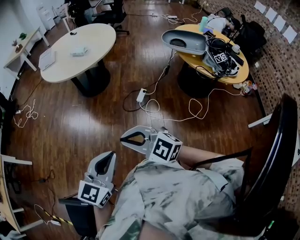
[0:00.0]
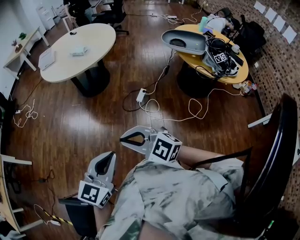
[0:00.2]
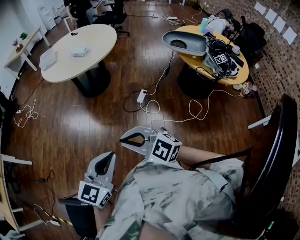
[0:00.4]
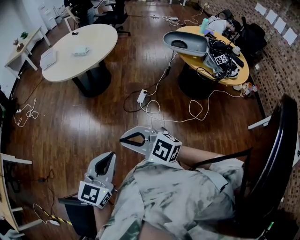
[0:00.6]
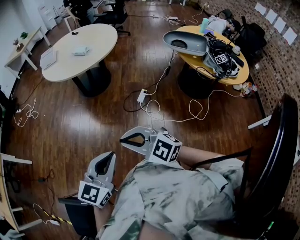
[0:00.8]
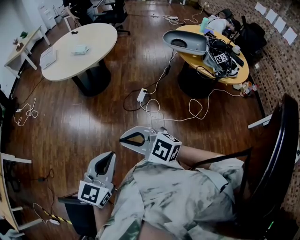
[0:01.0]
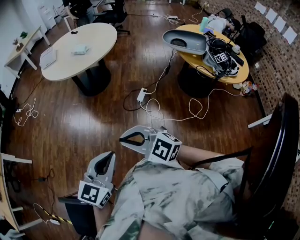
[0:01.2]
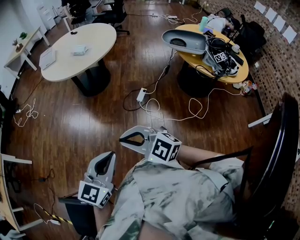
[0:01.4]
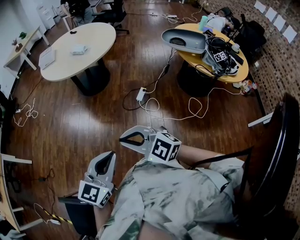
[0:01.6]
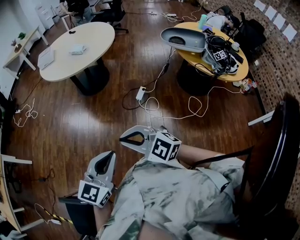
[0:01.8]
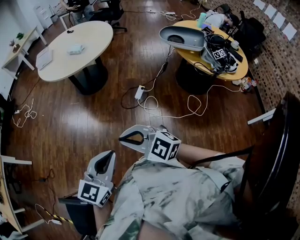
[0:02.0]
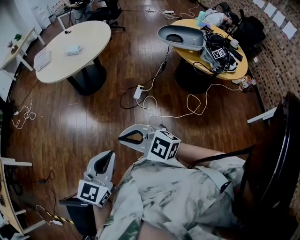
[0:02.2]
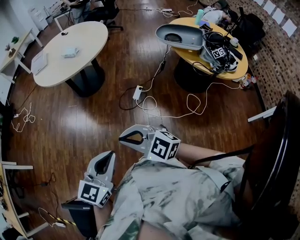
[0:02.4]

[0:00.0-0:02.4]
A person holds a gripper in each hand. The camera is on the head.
0:00.0 to 0:01.2: The grippers make only small movements.
0:01.2 to 0:02.4: The left gripper shifts by about 5 cm, while the right gripper moves about 5 cm.

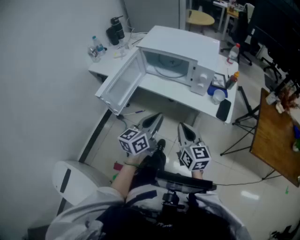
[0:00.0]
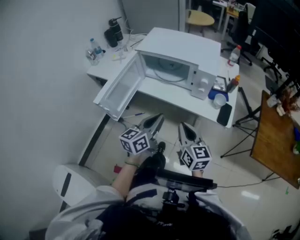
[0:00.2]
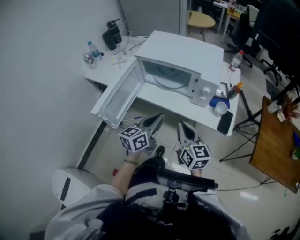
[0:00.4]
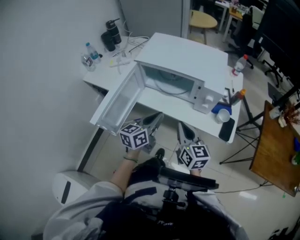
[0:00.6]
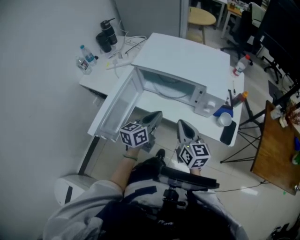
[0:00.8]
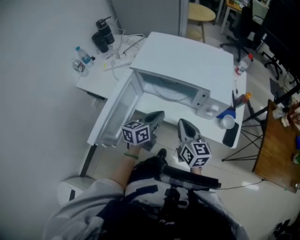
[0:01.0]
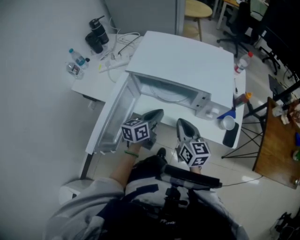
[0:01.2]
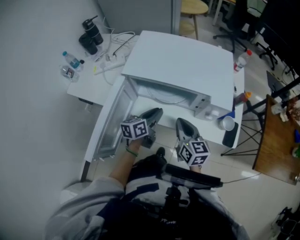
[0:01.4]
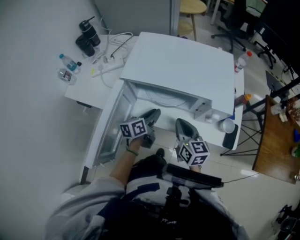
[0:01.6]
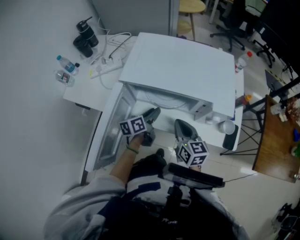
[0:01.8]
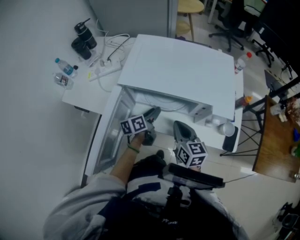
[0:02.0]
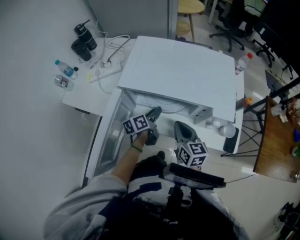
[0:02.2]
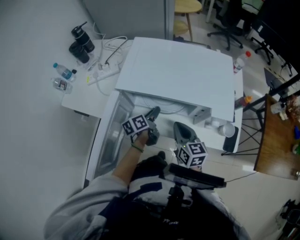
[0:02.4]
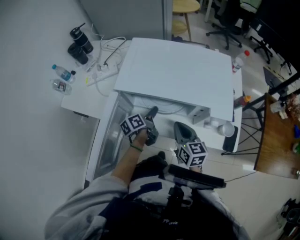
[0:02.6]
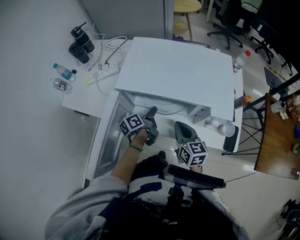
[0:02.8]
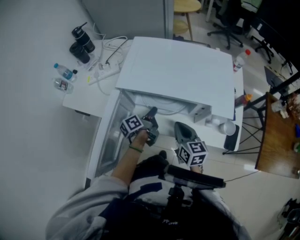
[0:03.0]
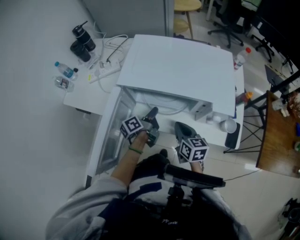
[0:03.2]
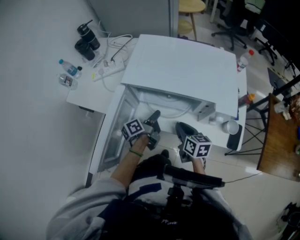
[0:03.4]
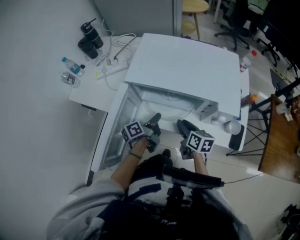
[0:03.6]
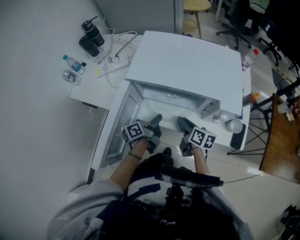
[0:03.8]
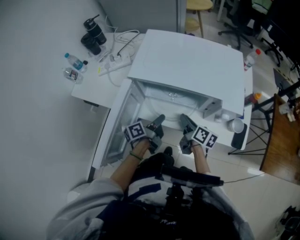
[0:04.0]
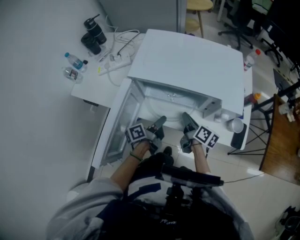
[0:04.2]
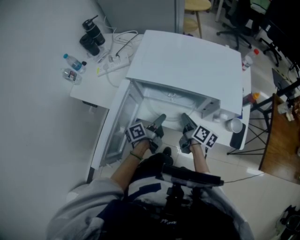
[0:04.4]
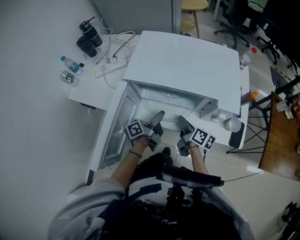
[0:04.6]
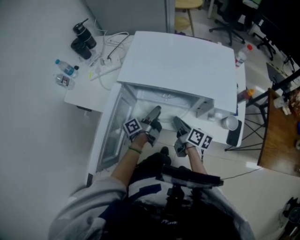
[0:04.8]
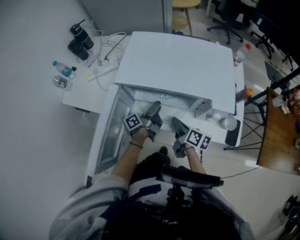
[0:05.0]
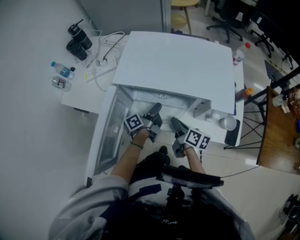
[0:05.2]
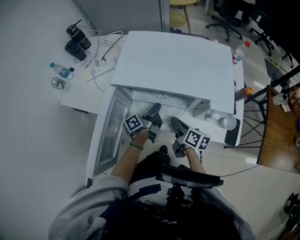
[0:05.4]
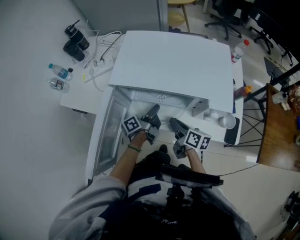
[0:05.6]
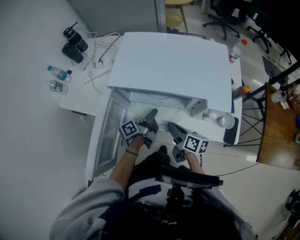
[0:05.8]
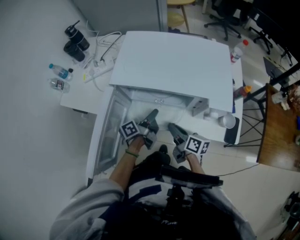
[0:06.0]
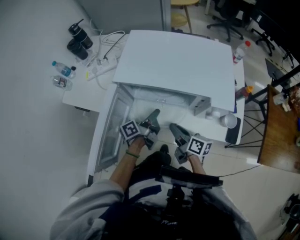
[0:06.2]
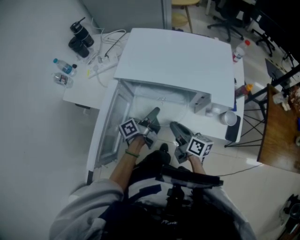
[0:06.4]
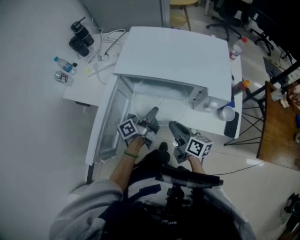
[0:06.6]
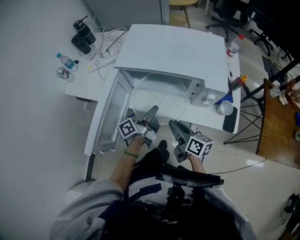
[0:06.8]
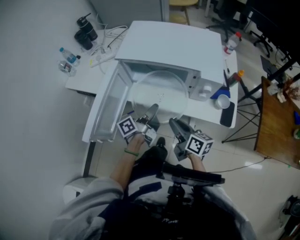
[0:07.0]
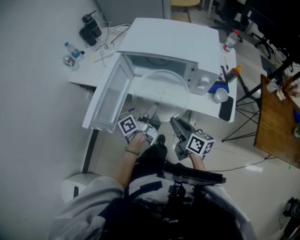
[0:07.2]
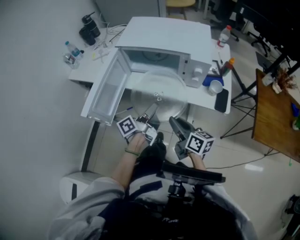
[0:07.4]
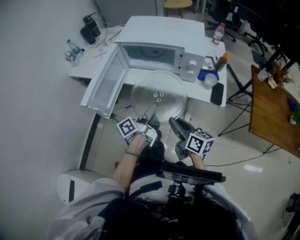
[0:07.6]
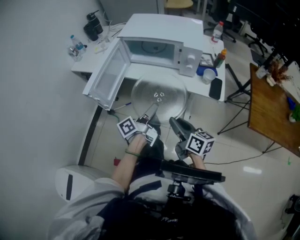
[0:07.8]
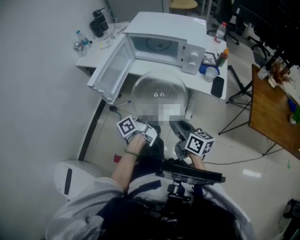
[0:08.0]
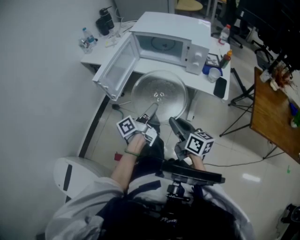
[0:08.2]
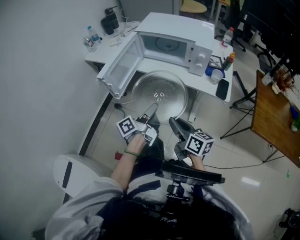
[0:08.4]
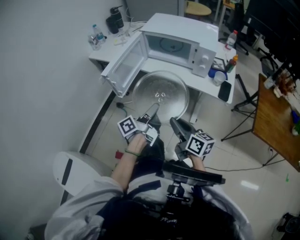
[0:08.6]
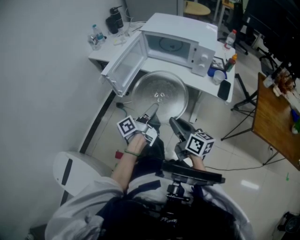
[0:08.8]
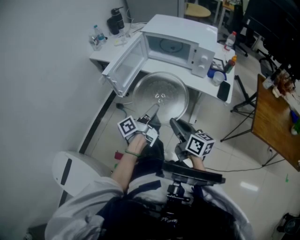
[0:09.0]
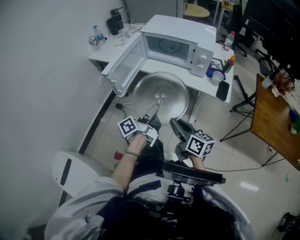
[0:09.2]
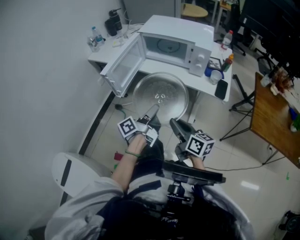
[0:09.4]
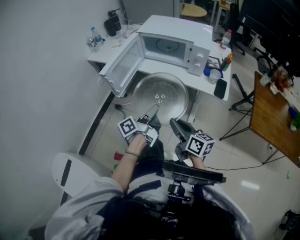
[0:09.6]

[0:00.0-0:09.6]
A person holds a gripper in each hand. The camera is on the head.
0:00.0 to 0:01.6: The right gripper shifts by about 30 cm.
0:01.6 to 0:03.2: The right gripper goes some 5 cm downward.
0:03.2 to 0:04.8: The right gripper rotates some 40 degrees.
0:04.8 to 0:06.4: The right gripper shifts by about 5 cm.
0:06.4 to 0:08.0: The right gripper ends up about 35 cm from where it was.
0:08.0 to 0:09.6: The right gripper changes place by about 5 cm.

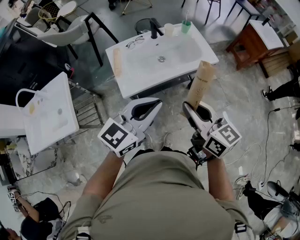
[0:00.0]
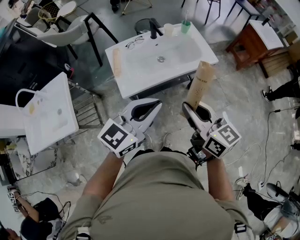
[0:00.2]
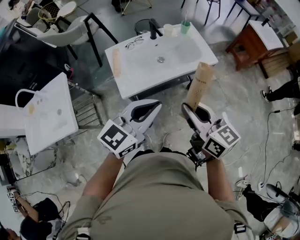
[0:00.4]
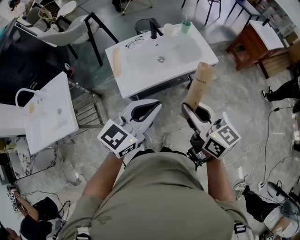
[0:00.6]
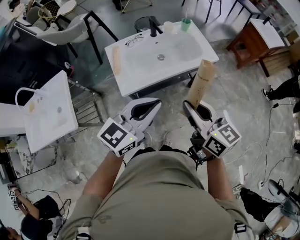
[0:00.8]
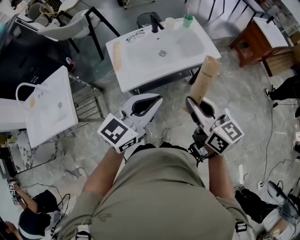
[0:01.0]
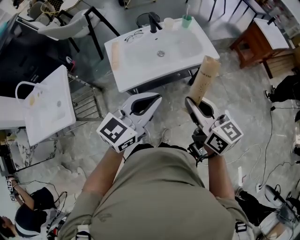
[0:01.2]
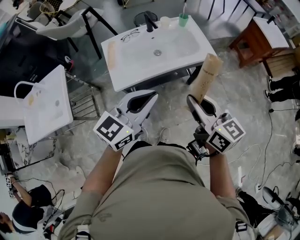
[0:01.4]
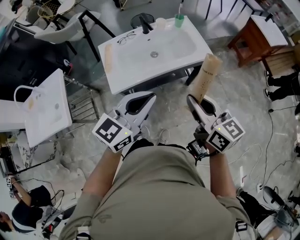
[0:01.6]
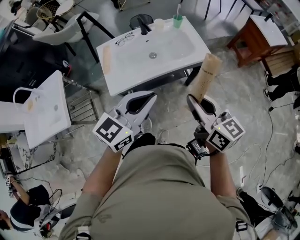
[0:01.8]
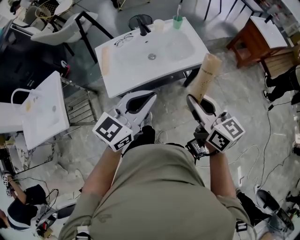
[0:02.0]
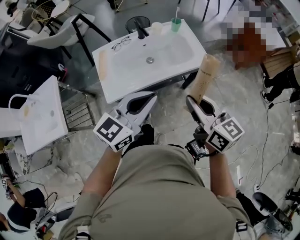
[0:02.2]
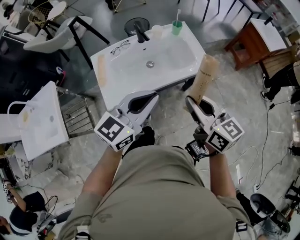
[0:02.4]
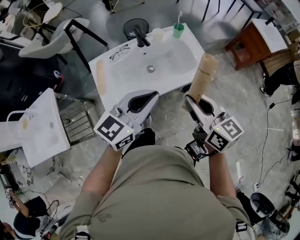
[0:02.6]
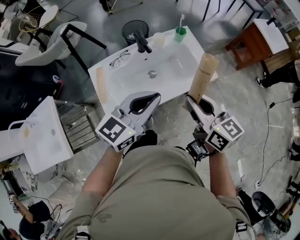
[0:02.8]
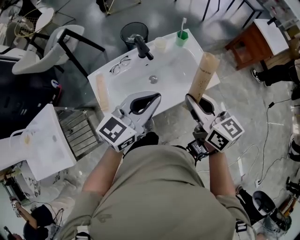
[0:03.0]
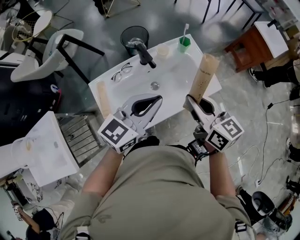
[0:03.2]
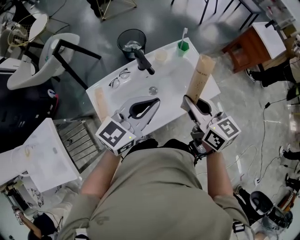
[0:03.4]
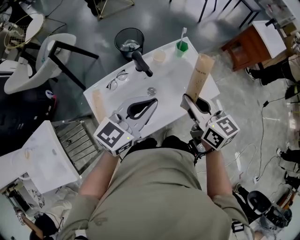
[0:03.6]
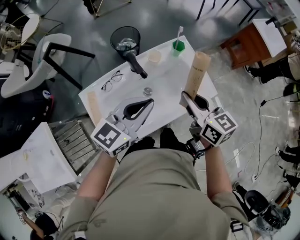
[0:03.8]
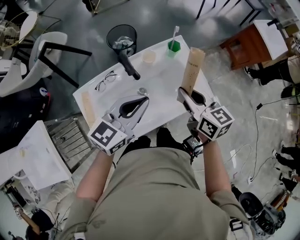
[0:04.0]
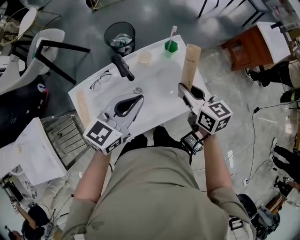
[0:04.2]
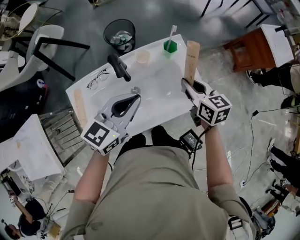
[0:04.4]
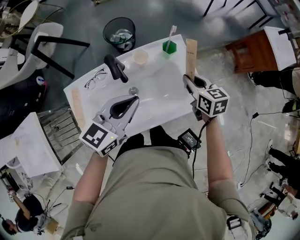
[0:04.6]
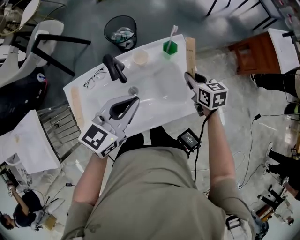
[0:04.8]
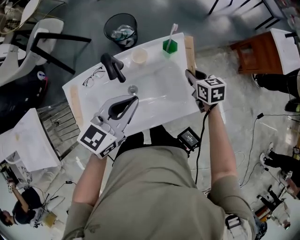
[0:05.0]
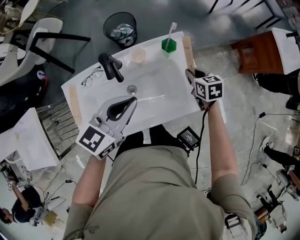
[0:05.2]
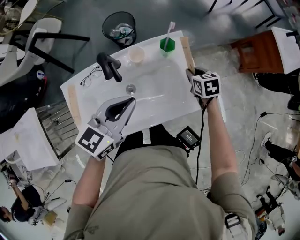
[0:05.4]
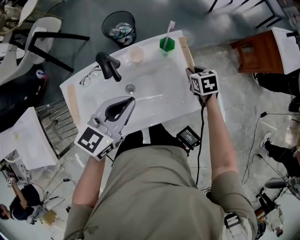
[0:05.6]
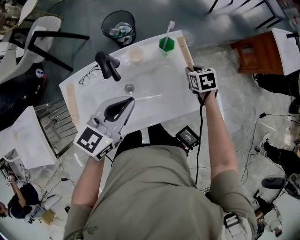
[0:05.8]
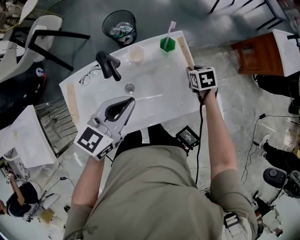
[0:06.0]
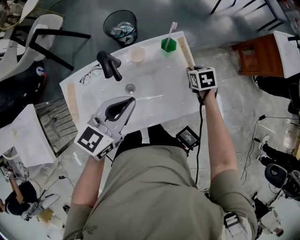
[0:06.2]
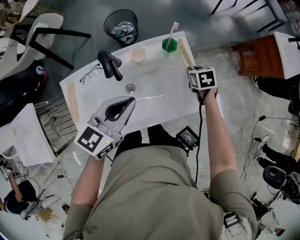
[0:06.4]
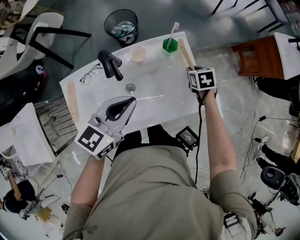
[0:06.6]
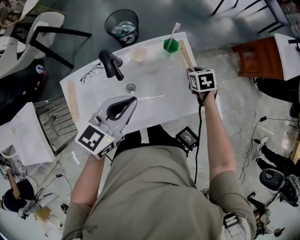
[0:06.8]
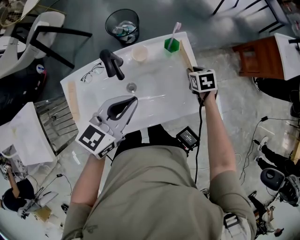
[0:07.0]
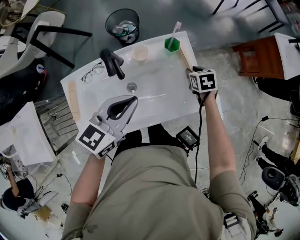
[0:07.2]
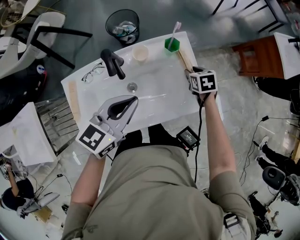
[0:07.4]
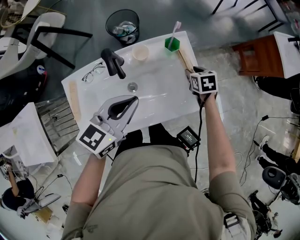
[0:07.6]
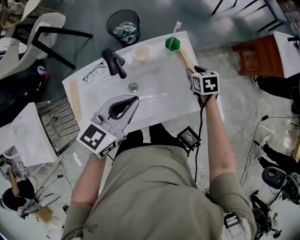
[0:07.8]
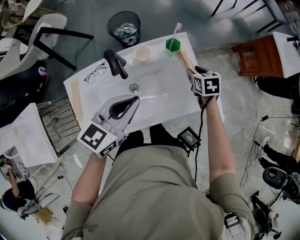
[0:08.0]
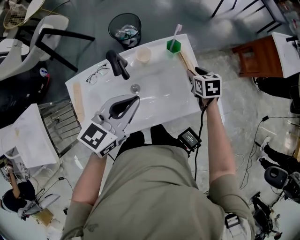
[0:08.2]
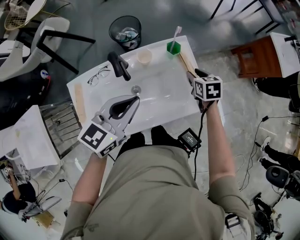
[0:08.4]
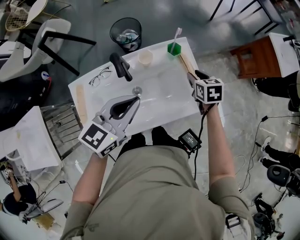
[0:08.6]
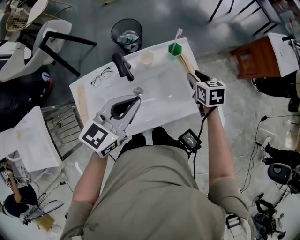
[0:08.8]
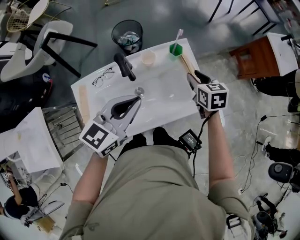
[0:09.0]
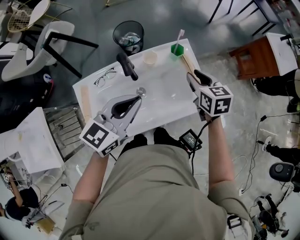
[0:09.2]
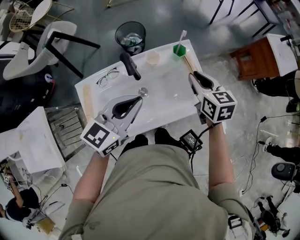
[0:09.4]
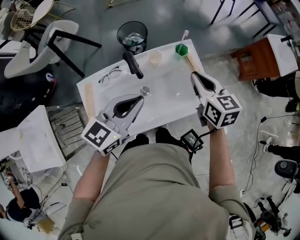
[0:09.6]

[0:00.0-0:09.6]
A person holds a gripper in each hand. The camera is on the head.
0:00.0 to 0:01.6: The grippers both shift to the right by approximately 10 cm.
0:01.6 to 0:03.2: Both grippers move forward, some 30 cm.
0:03.2 to 0:04.8: The left gripper goes about 15 cm forward and downward, while the right gripper goes some 35 cm forward, downward and to the right, and turns by approximately 30 degrees.
0:04.8 to 0:06.4: The right gripper moves downward, about 10 cm, and rotates some 20 degrees.
0:06.4 to 0:08.0: The grippers stay close to where they were, moving slightly.
0:08.0 to 0:09.6: The right gripper goes roughly 20 cm upward, swivels about 30 degrees, and closes its fingers. The left gripper shifts by roughly 5 cm.

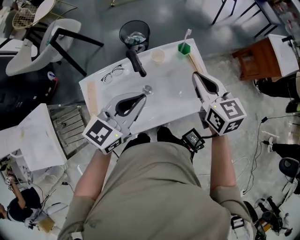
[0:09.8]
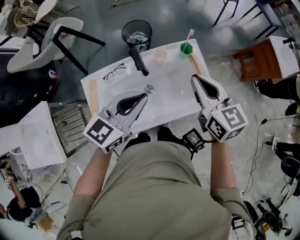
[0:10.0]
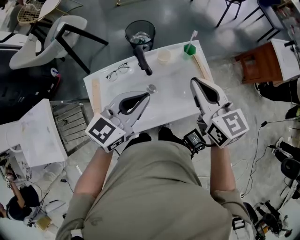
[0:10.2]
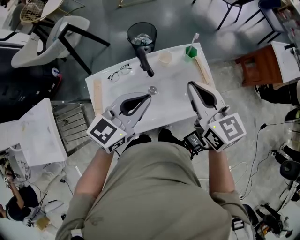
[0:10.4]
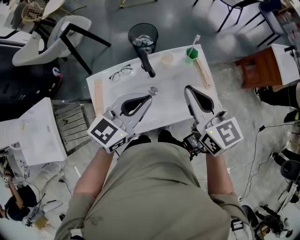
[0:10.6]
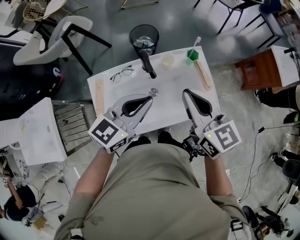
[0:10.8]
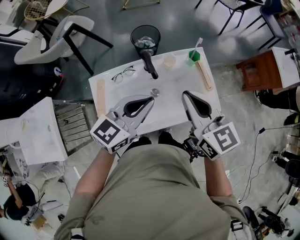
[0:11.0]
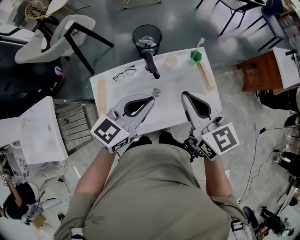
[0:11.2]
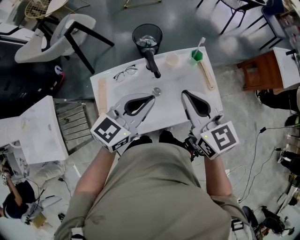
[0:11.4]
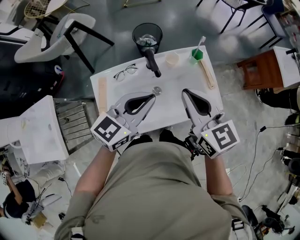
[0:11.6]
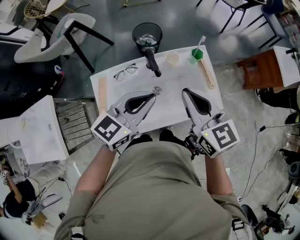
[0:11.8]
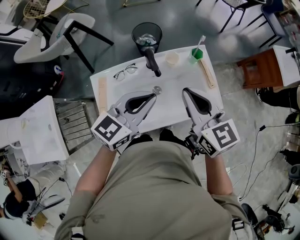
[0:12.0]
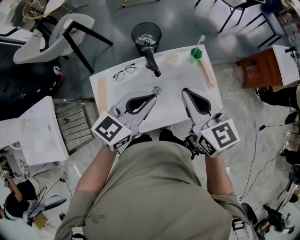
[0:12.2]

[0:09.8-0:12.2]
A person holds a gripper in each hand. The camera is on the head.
0:09.8 to 0:11.0: The right gripper travels to the left, backward and upward by some 15 cm.
0:11.0 to 0:12.2: The grippers make only small movements.
